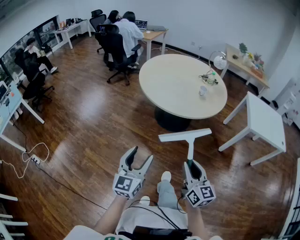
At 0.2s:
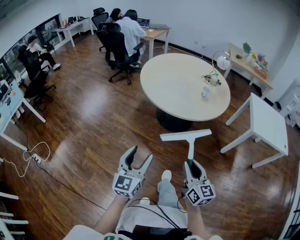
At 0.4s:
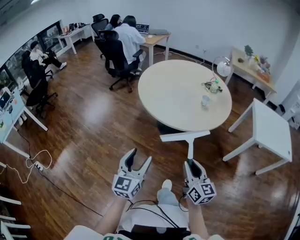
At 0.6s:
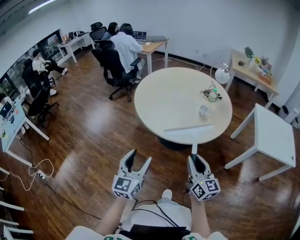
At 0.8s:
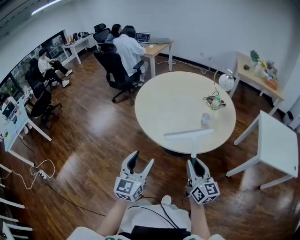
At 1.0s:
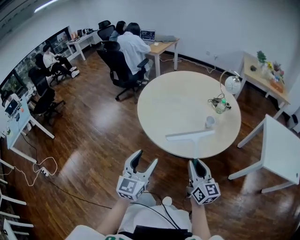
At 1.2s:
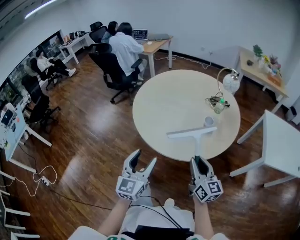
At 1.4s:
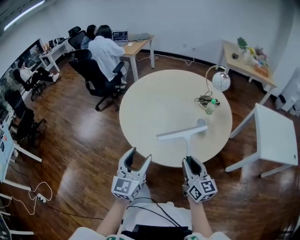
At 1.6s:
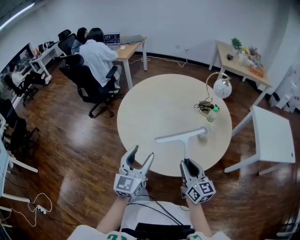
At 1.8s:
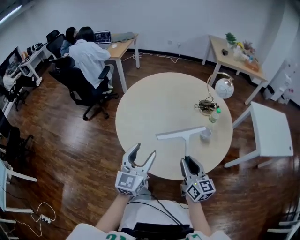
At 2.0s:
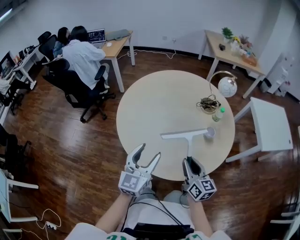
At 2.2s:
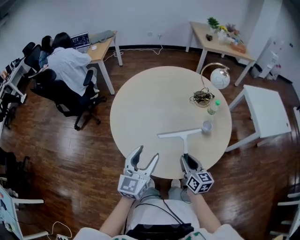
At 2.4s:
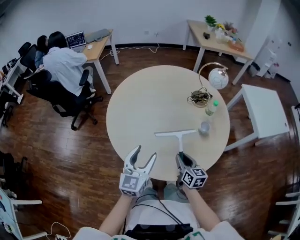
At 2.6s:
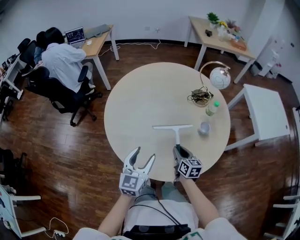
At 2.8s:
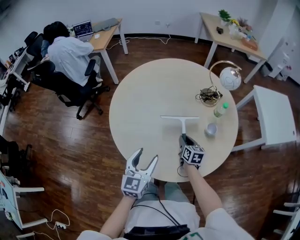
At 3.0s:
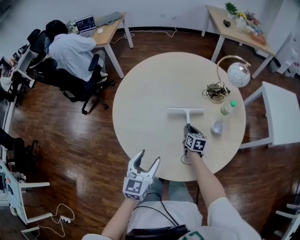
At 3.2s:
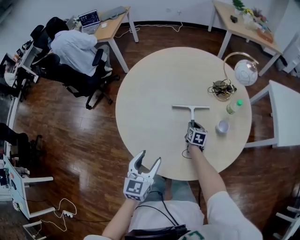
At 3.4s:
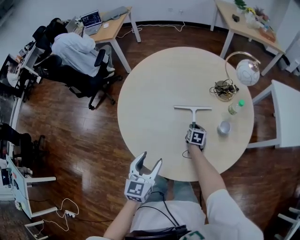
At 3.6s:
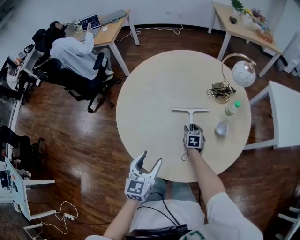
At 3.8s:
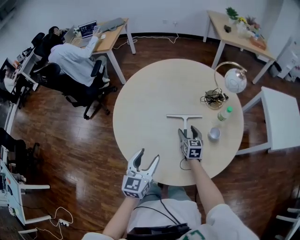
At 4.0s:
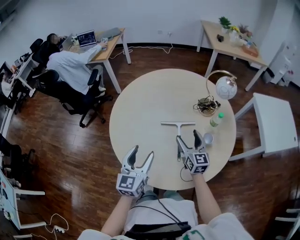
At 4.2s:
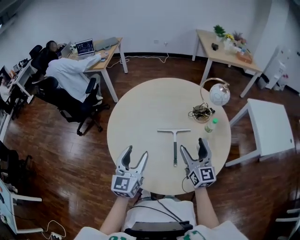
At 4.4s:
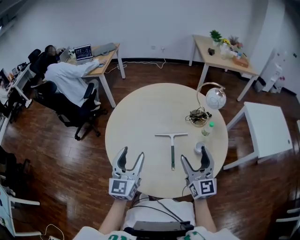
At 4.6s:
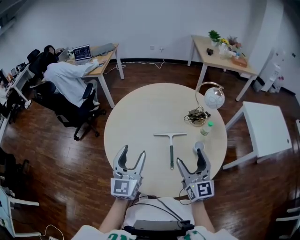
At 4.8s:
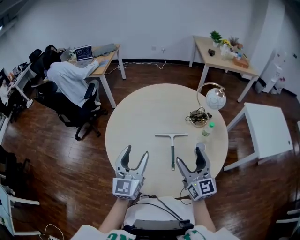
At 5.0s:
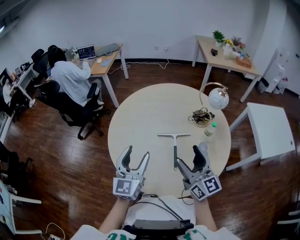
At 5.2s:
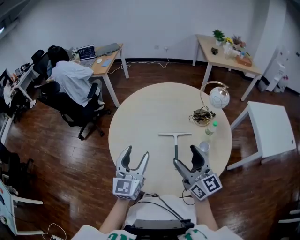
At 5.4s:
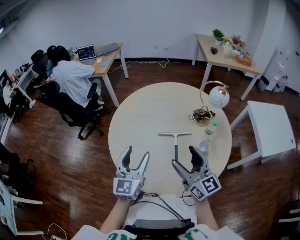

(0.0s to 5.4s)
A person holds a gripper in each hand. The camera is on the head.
0.0s - 1.4s: Both grippers are carried forward, roughly 40 cm.
1.4s - 2.8s: The left gripper is displaced forward and to the left by roughly 25 cm, and rotates approximately 20 degrees. The right gripper travels forward and downward by about 35 cm, and tilts its fingers approximately 30 degrees downward.
2.8s - 4.0s: The left gripper shifts by roughly 5 cm. Meanwhile the right gripper is displaced upward by approximately 15 cm, rotates some 30 degrees, and opens its fingers.
4.0s - 5.4s: The left gripper goes about 5 cm upward, while the right gripper travels upward and backward by about 20 cm.

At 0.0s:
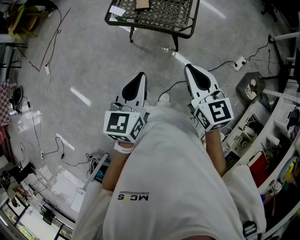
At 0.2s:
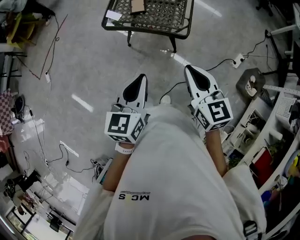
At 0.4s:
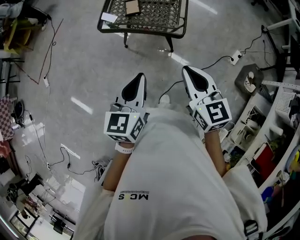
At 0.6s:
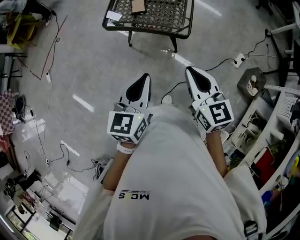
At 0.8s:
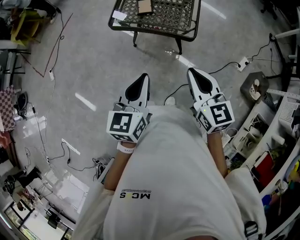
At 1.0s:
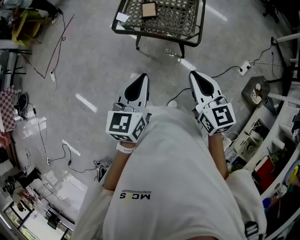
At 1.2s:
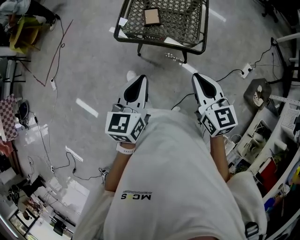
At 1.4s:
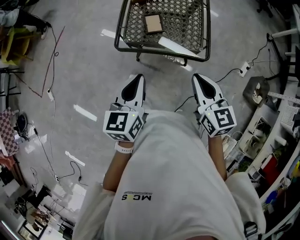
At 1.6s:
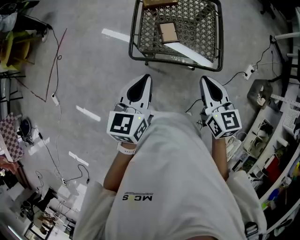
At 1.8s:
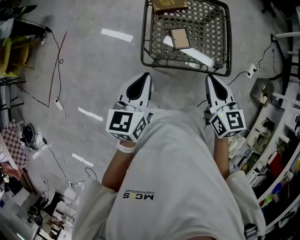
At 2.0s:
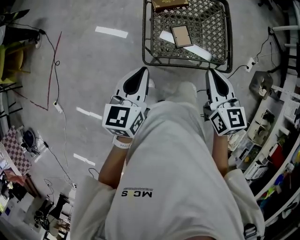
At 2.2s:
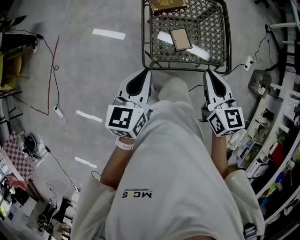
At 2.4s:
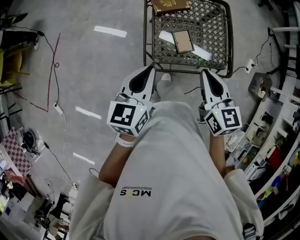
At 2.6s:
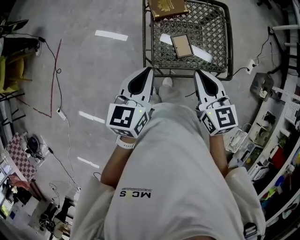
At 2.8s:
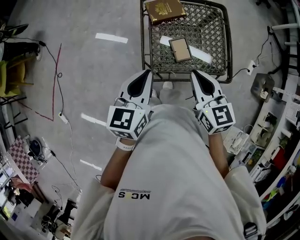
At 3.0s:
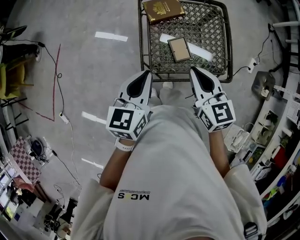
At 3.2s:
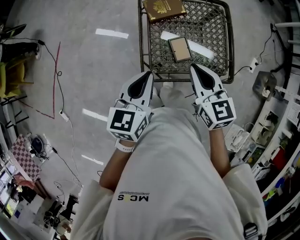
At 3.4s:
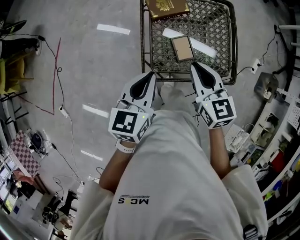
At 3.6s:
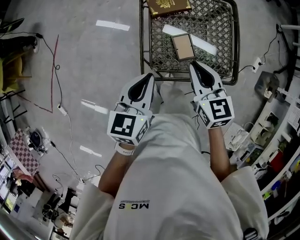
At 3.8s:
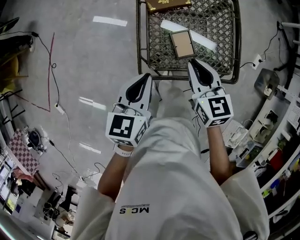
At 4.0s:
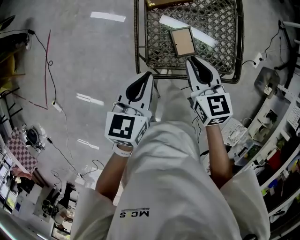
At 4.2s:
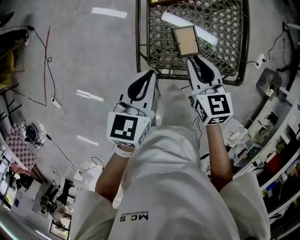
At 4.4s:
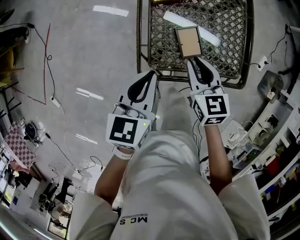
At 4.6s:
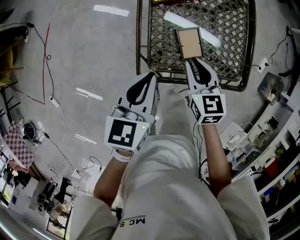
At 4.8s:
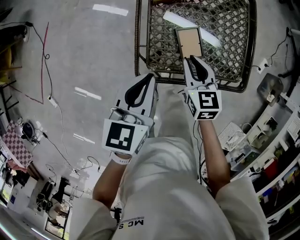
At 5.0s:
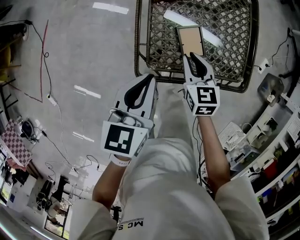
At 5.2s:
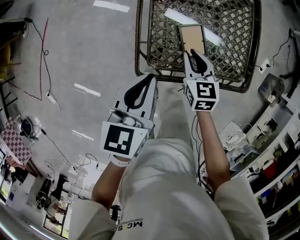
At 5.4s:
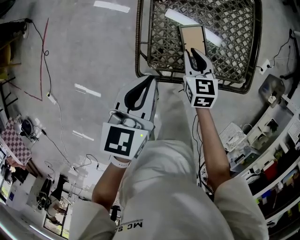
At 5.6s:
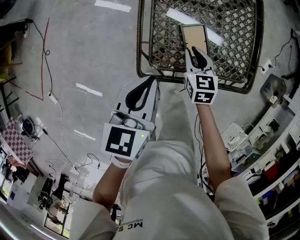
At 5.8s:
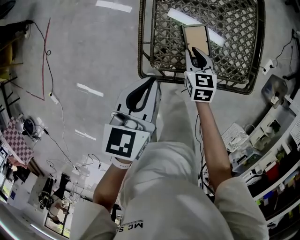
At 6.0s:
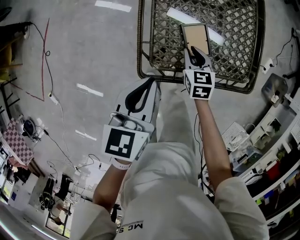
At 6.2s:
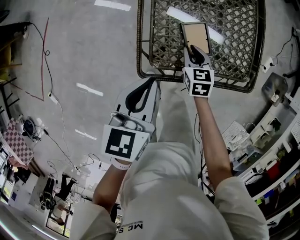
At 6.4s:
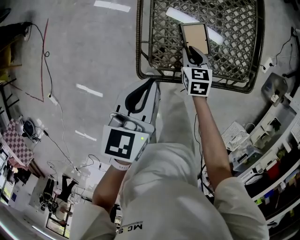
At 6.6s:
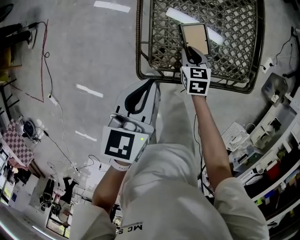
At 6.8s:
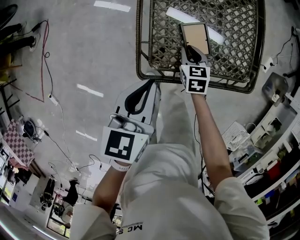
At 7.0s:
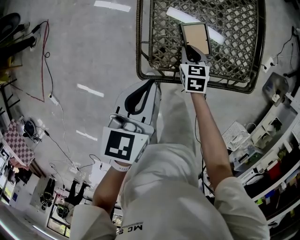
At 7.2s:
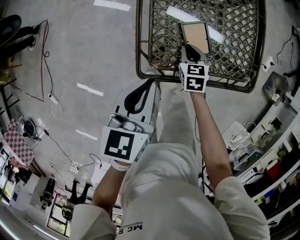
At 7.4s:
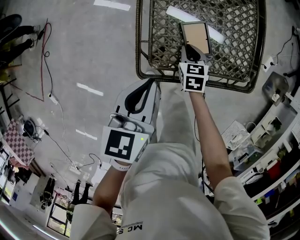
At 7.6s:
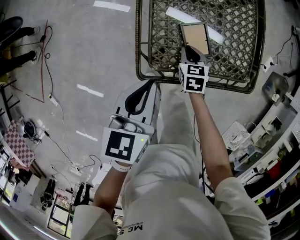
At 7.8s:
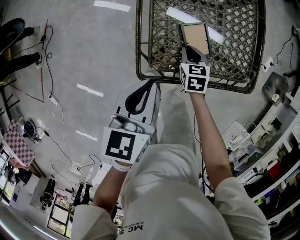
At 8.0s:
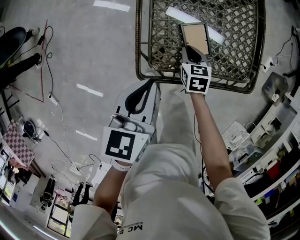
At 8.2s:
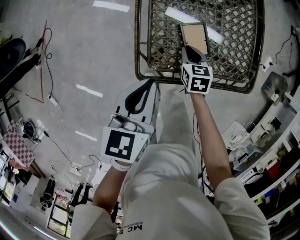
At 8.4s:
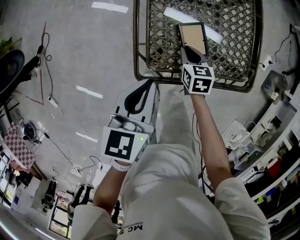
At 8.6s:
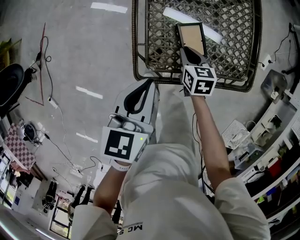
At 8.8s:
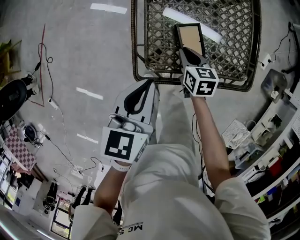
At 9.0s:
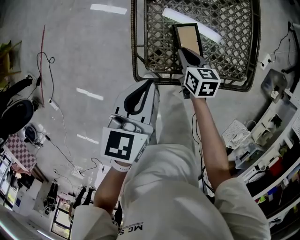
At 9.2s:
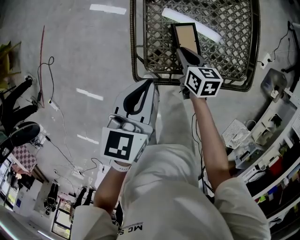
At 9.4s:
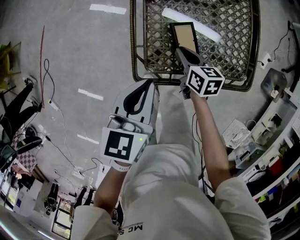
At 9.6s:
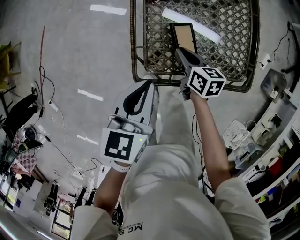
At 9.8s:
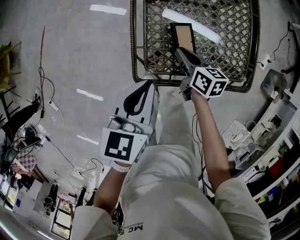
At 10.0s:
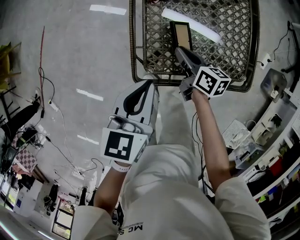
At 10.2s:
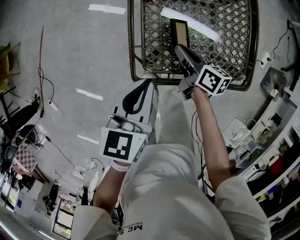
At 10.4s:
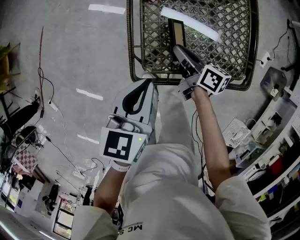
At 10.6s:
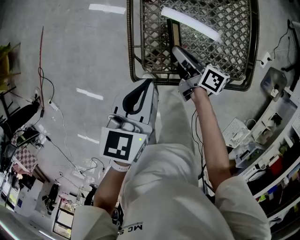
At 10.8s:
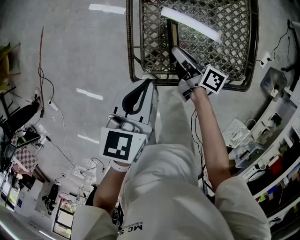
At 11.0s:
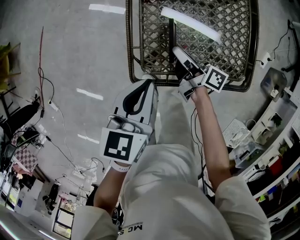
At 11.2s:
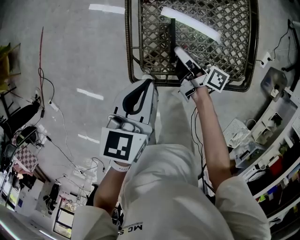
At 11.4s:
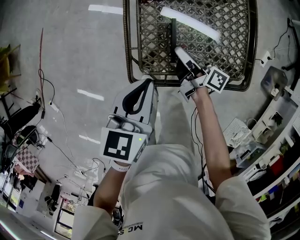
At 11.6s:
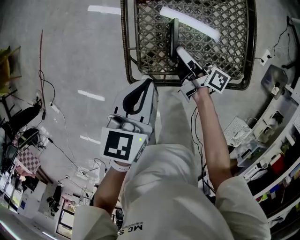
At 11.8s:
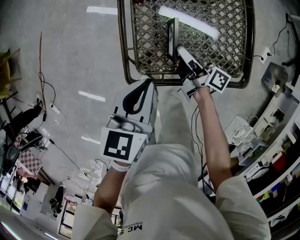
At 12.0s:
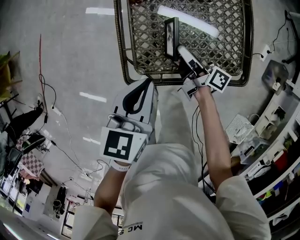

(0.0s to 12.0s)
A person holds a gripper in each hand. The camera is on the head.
0.0s - 1.6s: Both grippers move forward and to the left, roughly 30 cm.
1.6s - 3.0s: Both grippers move forward and to the left, roughly 20 cm.
3.0s - 4.4s: The right gripper goes about 15 cm downward. Meanwhile the left gripper travels downward by roughly 10 cm.
4.4s - 6.0s: The right gripper shifts some 15 cm downward.
6.0s - 9.0s: The grippers move only a little.
9.0s - 10.4s: The right gripper swivels roughly 40 degrees.
10.4s - 12.0s: The right gripper turns by roughly 20 degrees.

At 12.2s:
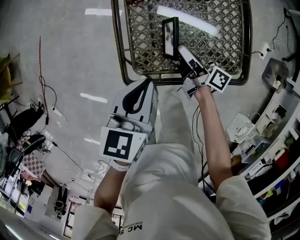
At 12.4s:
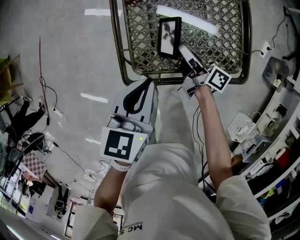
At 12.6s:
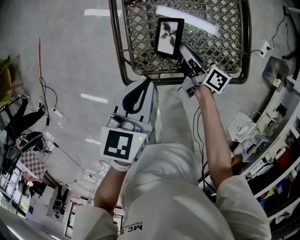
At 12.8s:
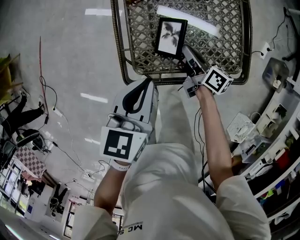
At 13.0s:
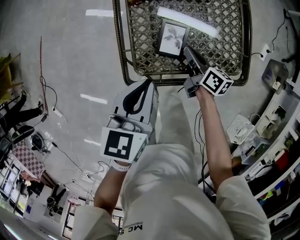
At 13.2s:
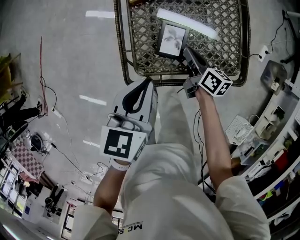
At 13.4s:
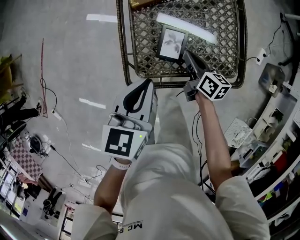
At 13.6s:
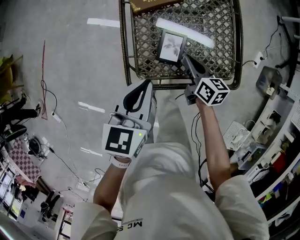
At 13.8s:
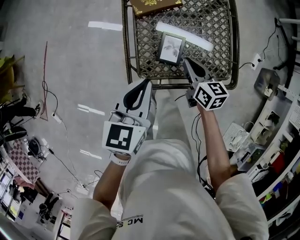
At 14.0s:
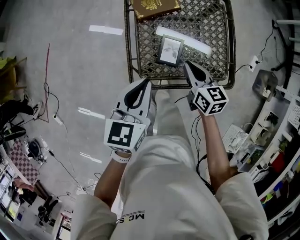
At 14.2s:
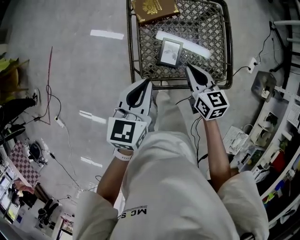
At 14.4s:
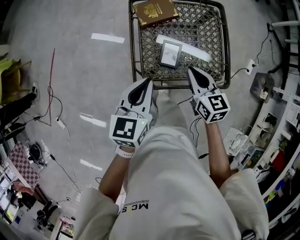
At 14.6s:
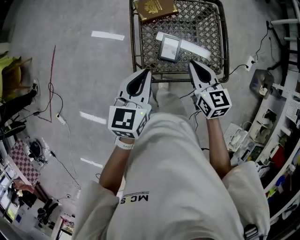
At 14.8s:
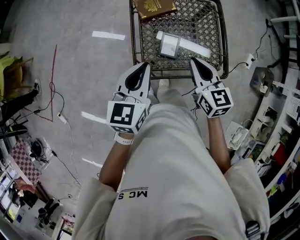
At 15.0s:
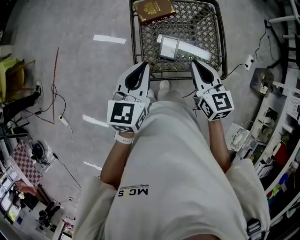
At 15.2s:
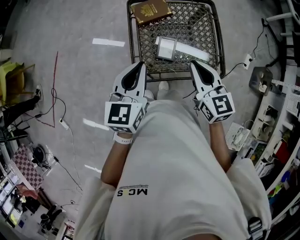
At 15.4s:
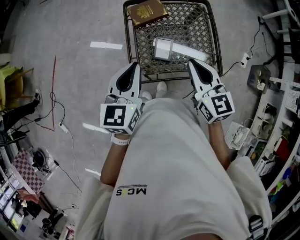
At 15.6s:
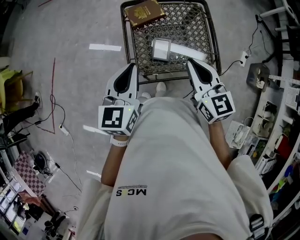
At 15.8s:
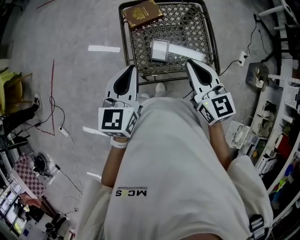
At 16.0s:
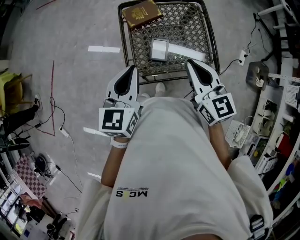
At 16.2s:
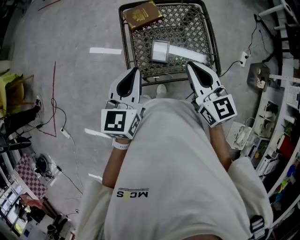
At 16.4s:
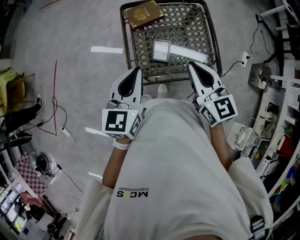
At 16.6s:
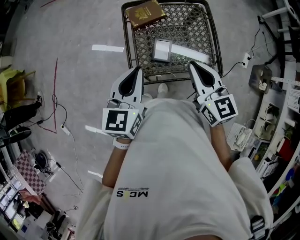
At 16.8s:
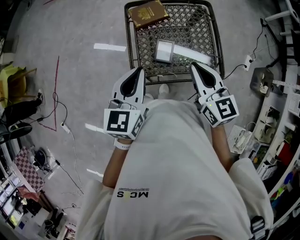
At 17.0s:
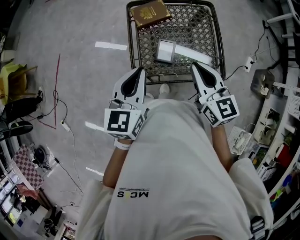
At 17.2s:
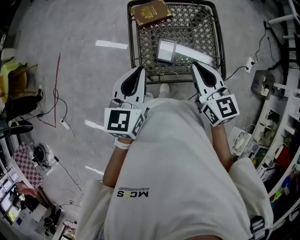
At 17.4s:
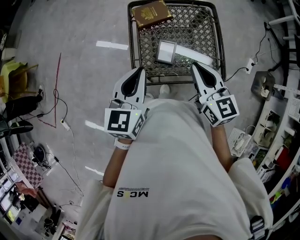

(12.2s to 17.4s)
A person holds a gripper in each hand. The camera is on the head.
12.2s - 14.0s: The two grippers go some 10 cm upward. The right gripper rolls counterclockwise, seen from behind, by about 50 degrees.
14.0s - 15.6s: The right gripper is displaced upward by about 20 cm, and swivels approximately 20 degrees. Meanwhile the left gripper moves upward, approximately 10 cm.
15.6s - 17.4s: There are only small adjustments of the grippers.

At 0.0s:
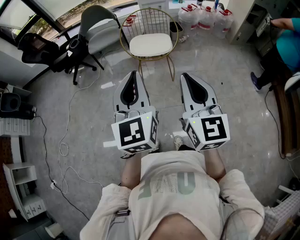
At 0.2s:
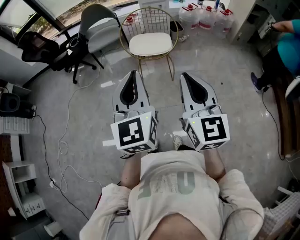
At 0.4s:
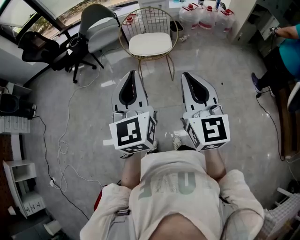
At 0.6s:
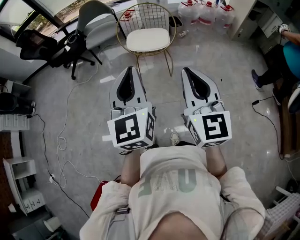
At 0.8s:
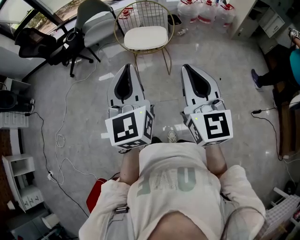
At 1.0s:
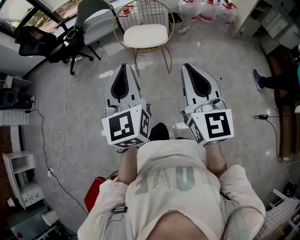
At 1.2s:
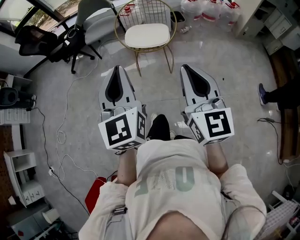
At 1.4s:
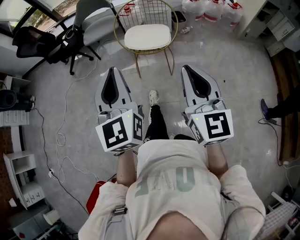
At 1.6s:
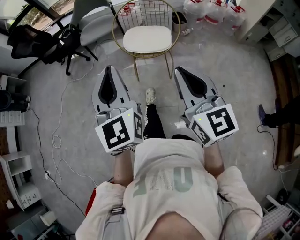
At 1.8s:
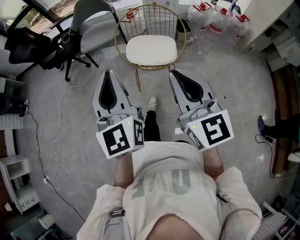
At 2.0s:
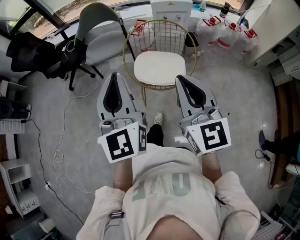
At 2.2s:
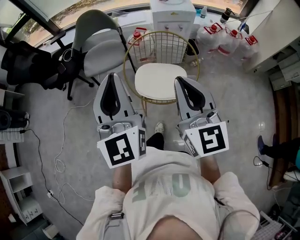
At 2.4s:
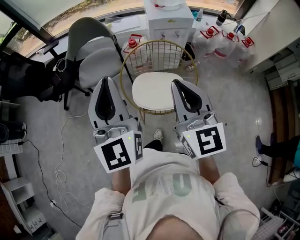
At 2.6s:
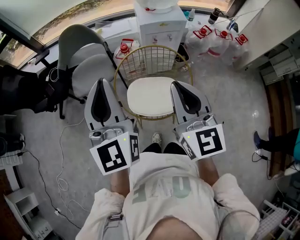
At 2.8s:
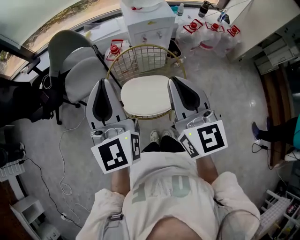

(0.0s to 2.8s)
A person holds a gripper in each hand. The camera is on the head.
0.0s - 1.4s: The right gripper heads to the right and forward, covering about 10 cm; the left gripper travels forward by some 5 cm.
1.4s - 2.8s: Both grippers are carried forward, about 50 cm.
